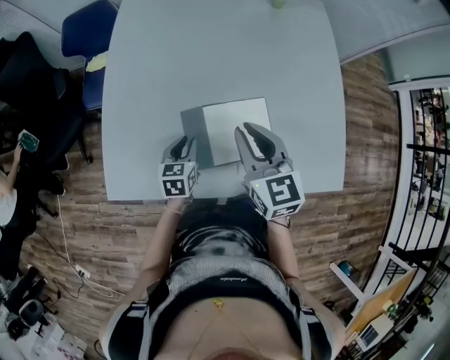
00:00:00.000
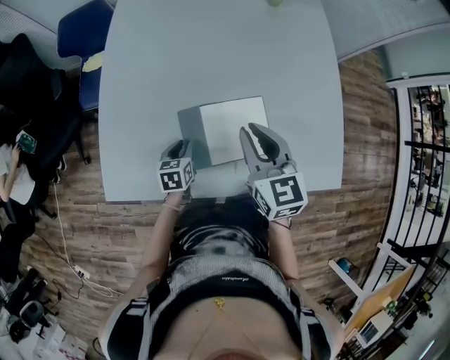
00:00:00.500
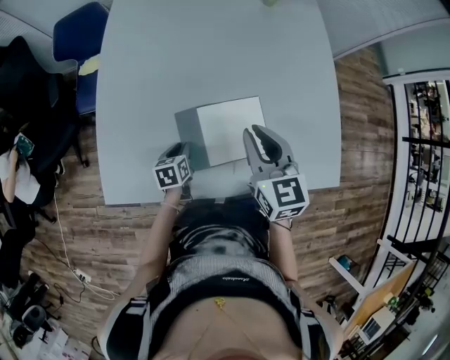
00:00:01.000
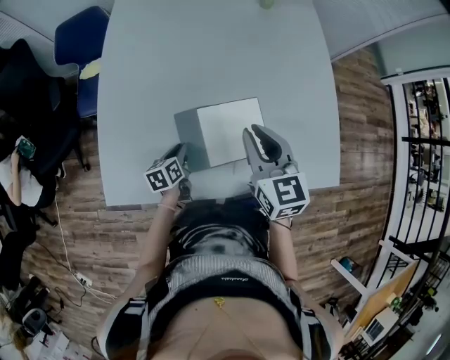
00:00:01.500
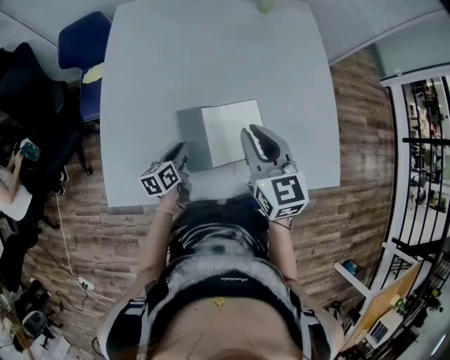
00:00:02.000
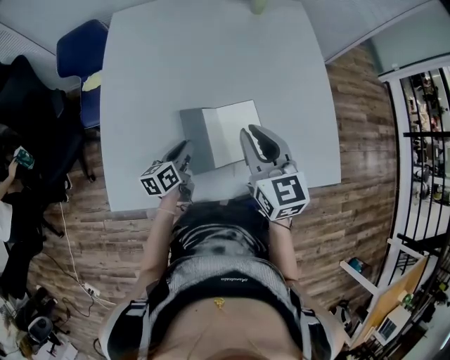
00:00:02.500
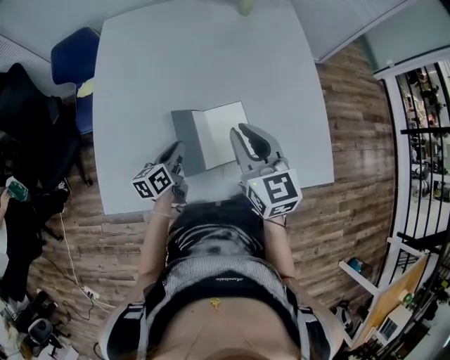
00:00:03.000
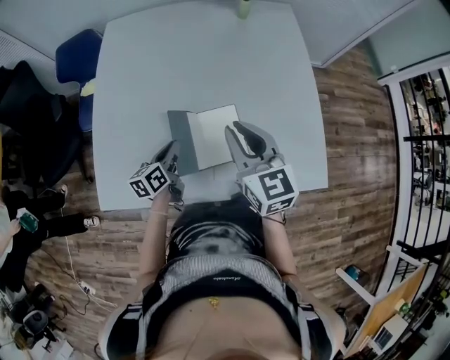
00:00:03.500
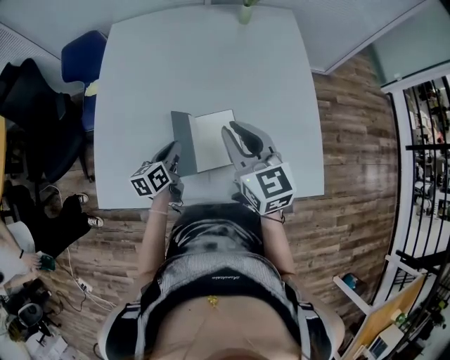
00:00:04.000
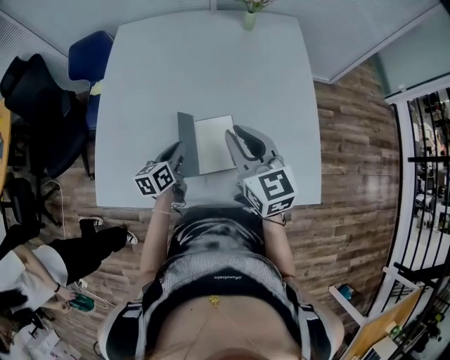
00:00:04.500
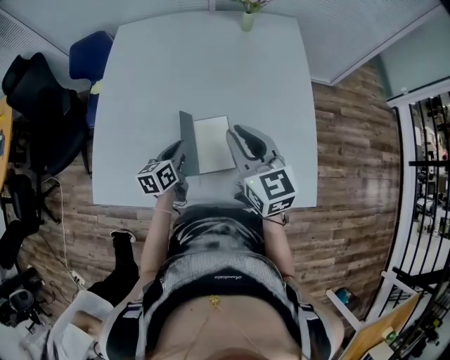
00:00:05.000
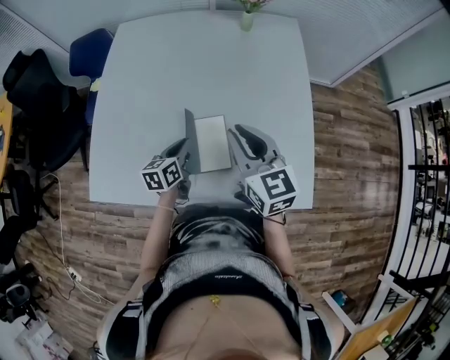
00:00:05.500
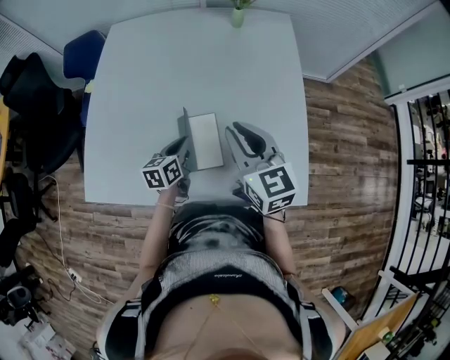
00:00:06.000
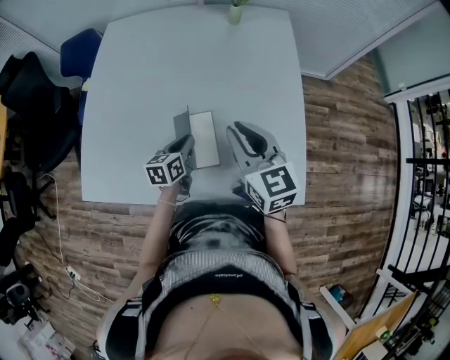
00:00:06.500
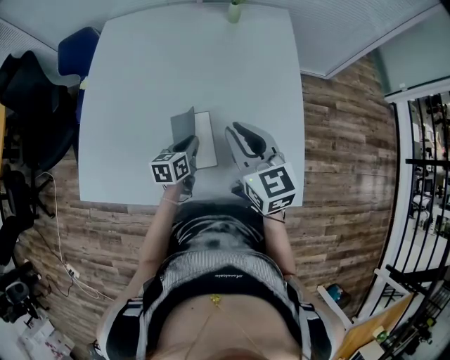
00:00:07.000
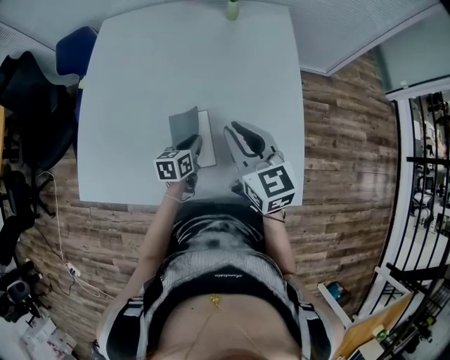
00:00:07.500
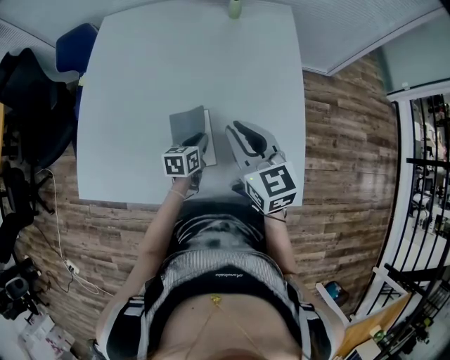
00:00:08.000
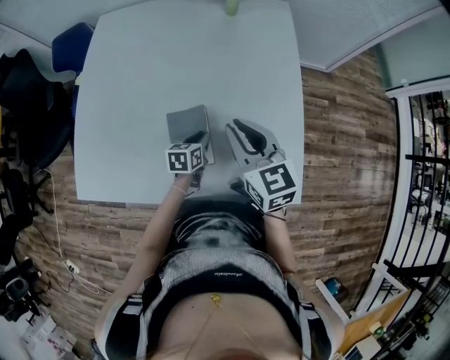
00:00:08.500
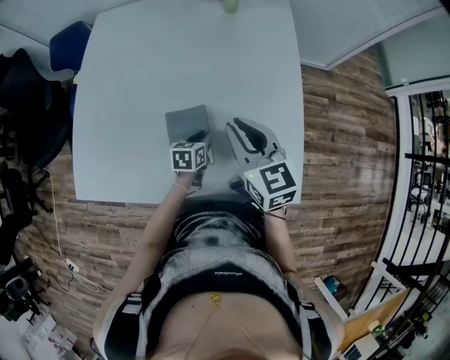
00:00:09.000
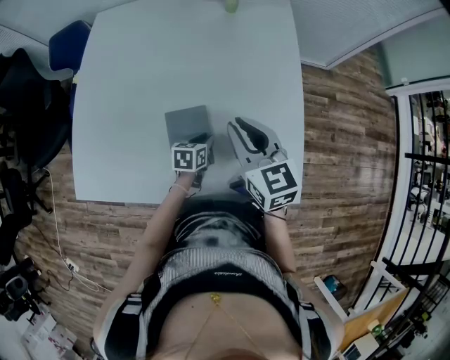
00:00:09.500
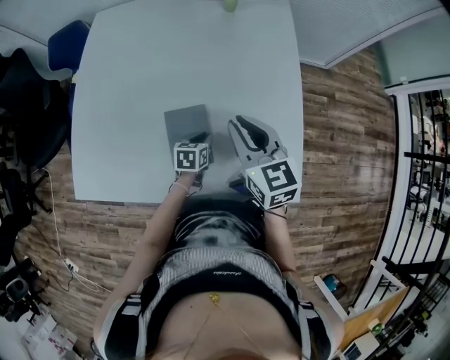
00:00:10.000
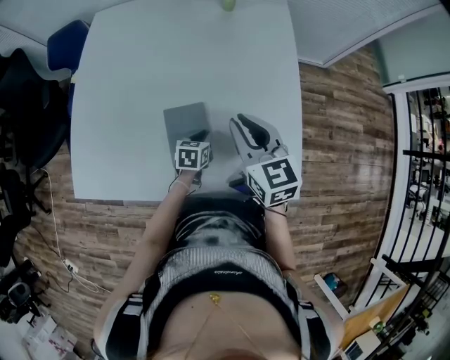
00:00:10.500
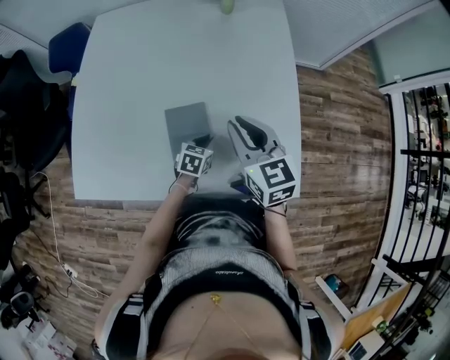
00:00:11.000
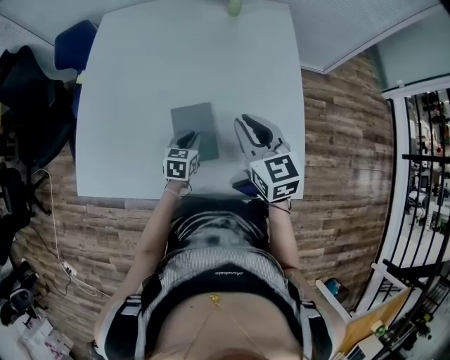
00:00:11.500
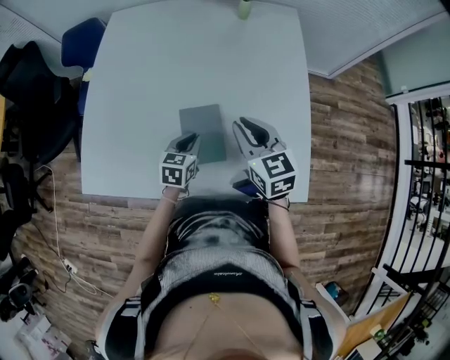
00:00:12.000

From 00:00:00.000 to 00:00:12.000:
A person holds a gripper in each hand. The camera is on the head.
From 00:00:00.000 to 00:00:02.000: The left gripper turns by approximately 30 degrees.
From 00:00:02.000 to 00:00:04.000: The right gripper goes approximately 5 cm to the right, while the left gripper is displaced upward and to the right by roughly 10 cm.
From 00:00:04.000 to 00:00:06.000: The grippers both shift to the right by roughly 10 cm.
From 00:00:06.000 to 00:00:08.000: The left gripper is displaced to the right and downward by some 10 cm.
From 00:00:08.000 to 00:00:10.000: The grippers stay close to where they were, moving slightly.
From 00:00:10.000 to 00:00:12.000: The left gripper travels upward and to the left by approximately 10 cm.

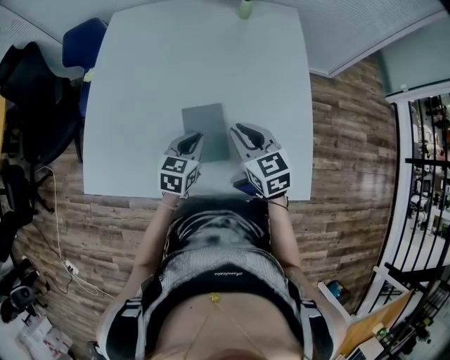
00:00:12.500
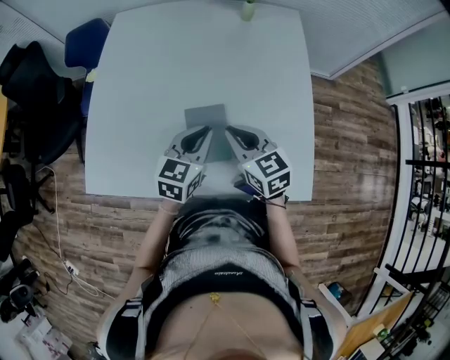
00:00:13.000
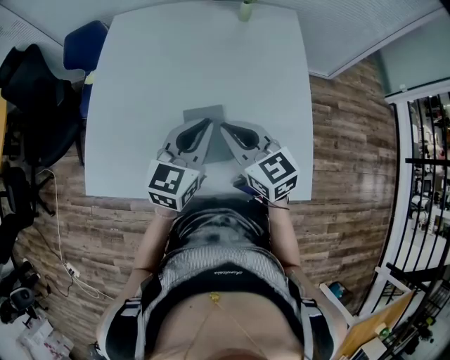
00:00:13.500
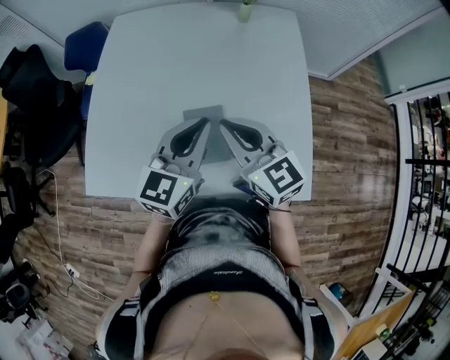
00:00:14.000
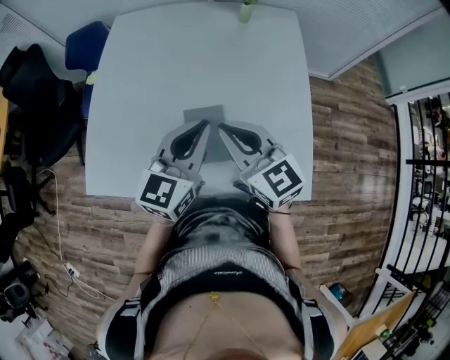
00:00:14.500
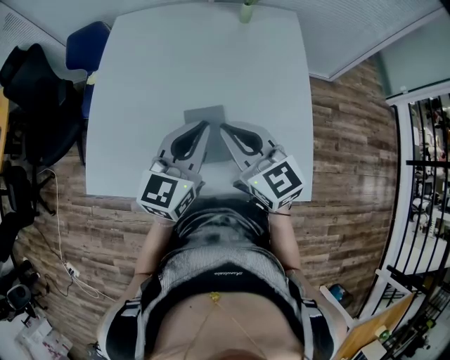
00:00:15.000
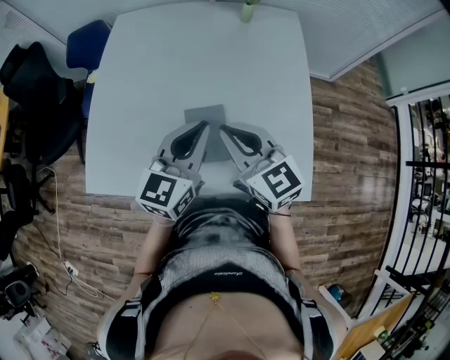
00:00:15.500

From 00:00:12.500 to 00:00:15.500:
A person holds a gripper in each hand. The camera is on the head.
From 00:00:12.500 to 00:00:14.000: The right gripper is displaced upward by approximately 10 cm, and changes its angle by roughly 20 degrees. Meanwhile the left gripper shifts roughly 20 cm upward, and rotates approximately 30 degrees.
From 00:00:14.000 to 00:00:15.500: Both grippers stay about where they are.

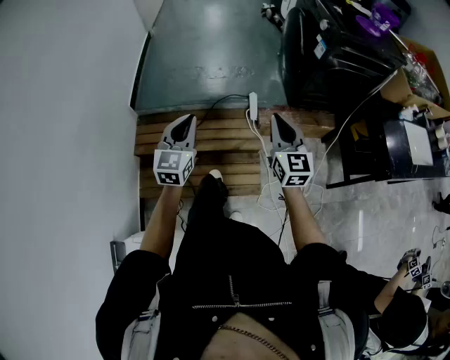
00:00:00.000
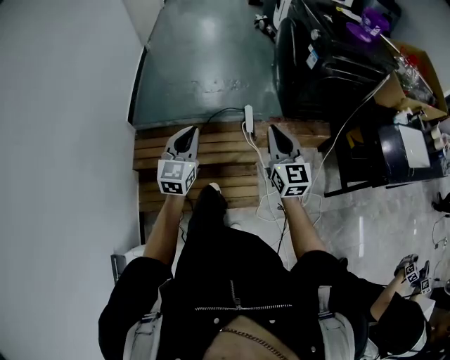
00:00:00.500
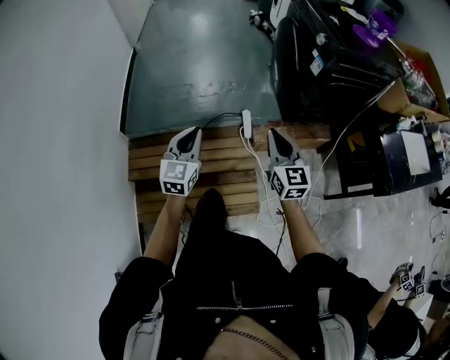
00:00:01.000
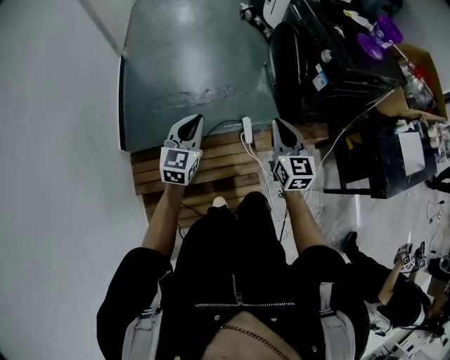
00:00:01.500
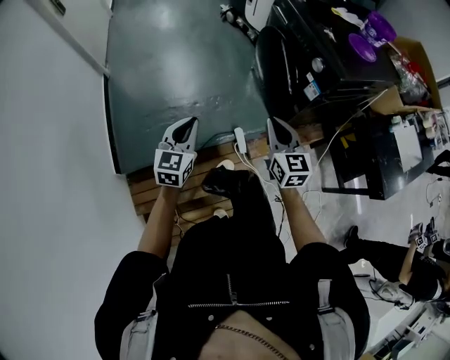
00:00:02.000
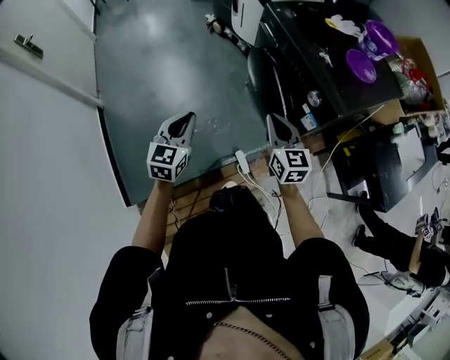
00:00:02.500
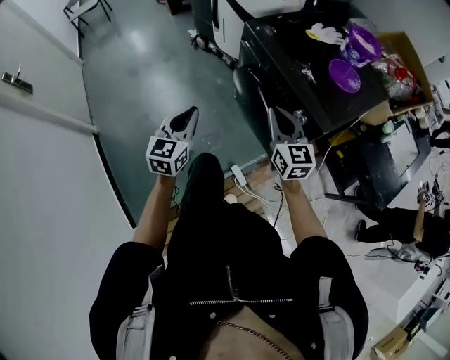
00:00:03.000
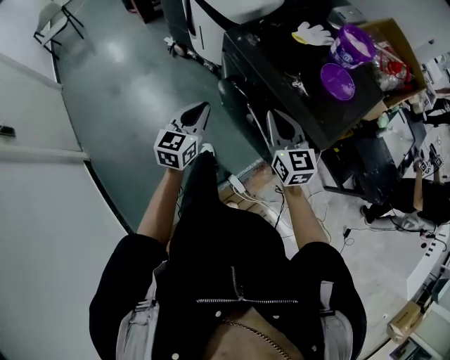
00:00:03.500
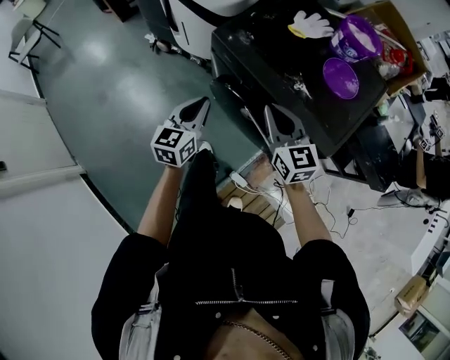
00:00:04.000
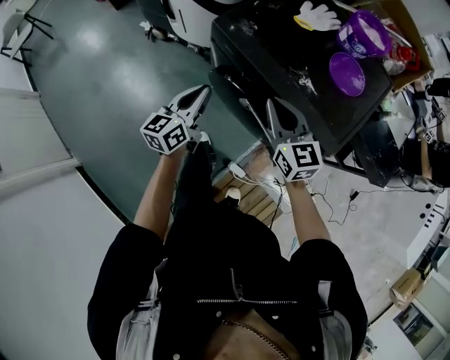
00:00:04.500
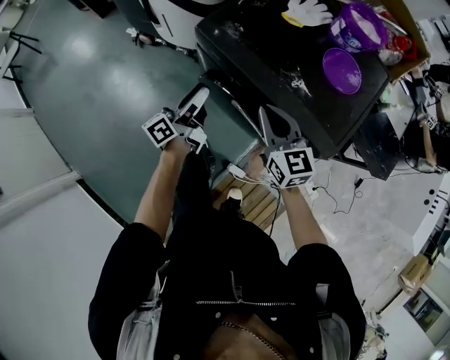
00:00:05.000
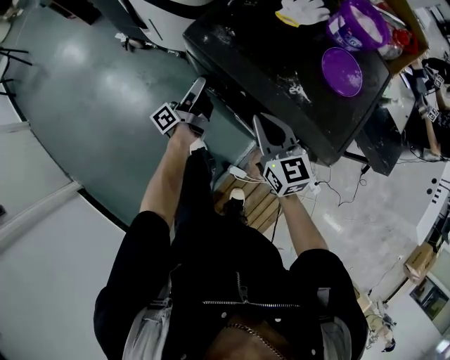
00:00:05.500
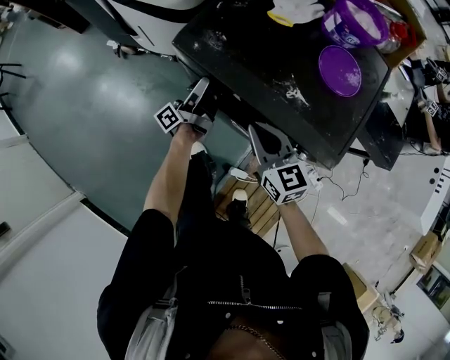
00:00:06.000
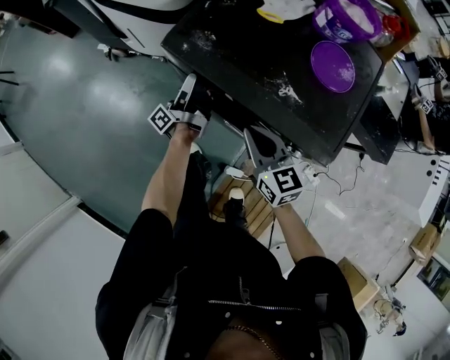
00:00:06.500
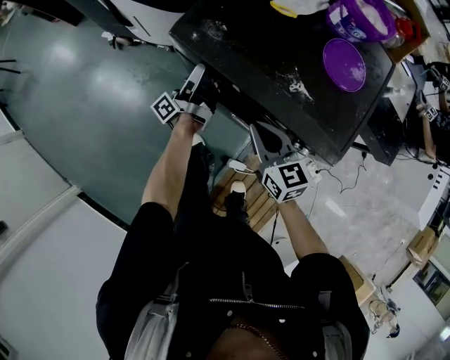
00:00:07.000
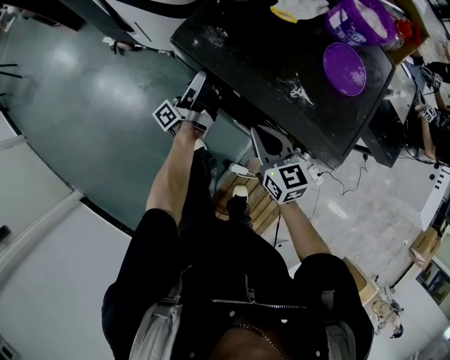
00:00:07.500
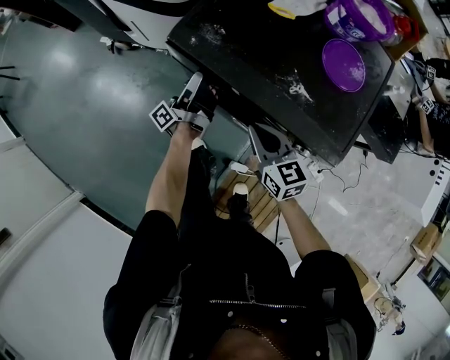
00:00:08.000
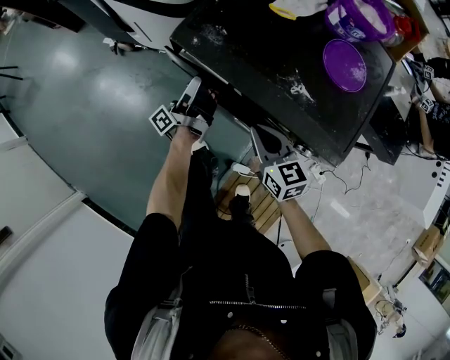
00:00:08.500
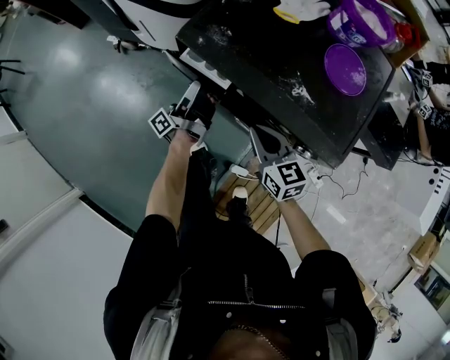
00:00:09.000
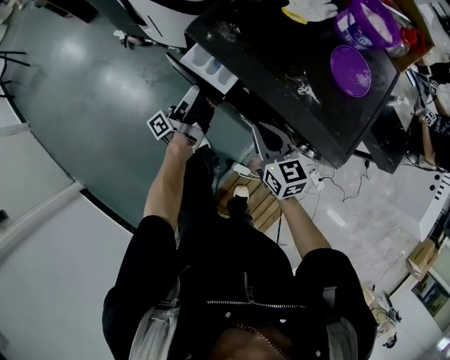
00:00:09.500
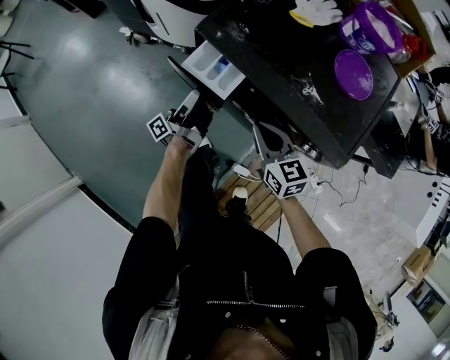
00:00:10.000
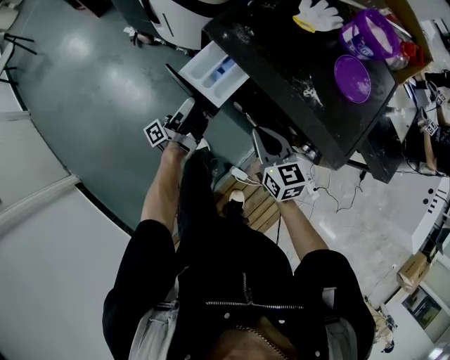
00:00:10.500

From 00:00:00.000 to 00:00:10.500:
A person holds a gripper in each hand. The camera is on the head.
From 00:00:00.000 to 00:00:02.000: Both grippers move forward, approximately 35 cm. The left gripper changes its angle by roughly 20 degrees.
From 00:00:02.000 to 00:00:04.000: The pair of grippers is taken about 50 cm. The left gripper swivels about 30 degrees.
From 00:00:04.000 to 00:00:06.500: The right gripper is displaced downward by roughly 10 cm. Meanwhile the left gripper goes about 25 cm forward and downward, rolls counterclockwise, seen from behind, by about 80 degrees, and opens up.
From 00:00:06.500 to 00:00:08.500: The grippers make only small movements.
From 00:00:08.500 to 00:00:10.500: The left gripper moves backward and to the left, some 10 cm.

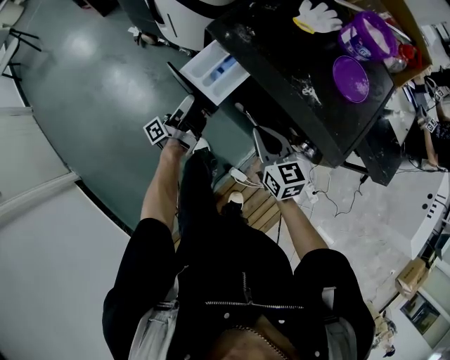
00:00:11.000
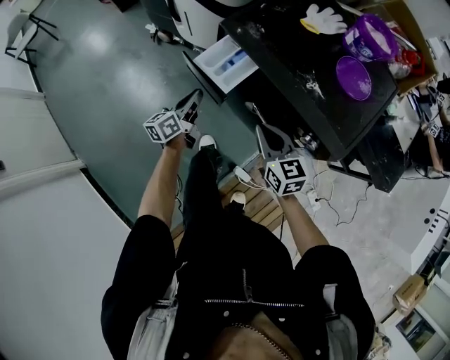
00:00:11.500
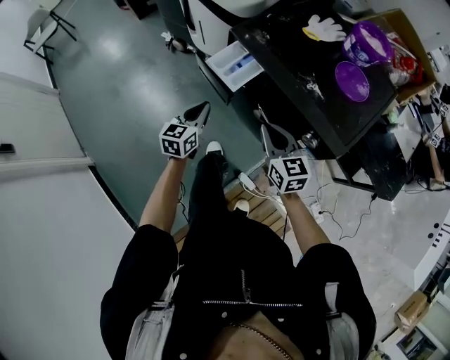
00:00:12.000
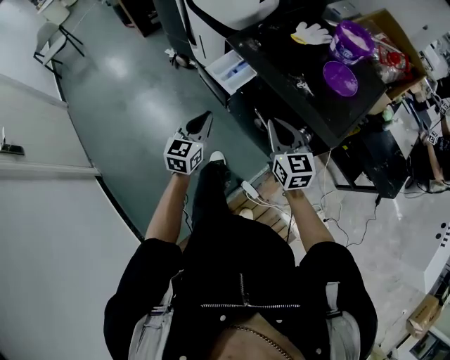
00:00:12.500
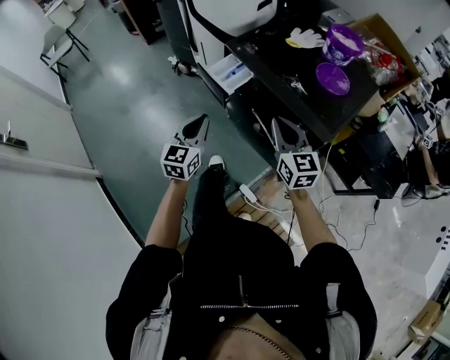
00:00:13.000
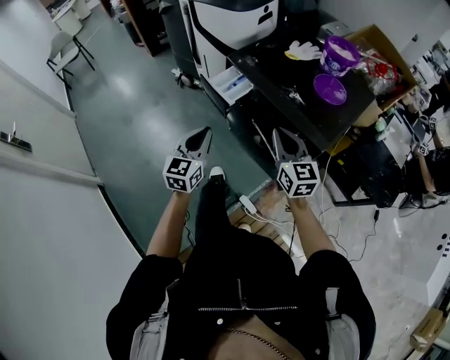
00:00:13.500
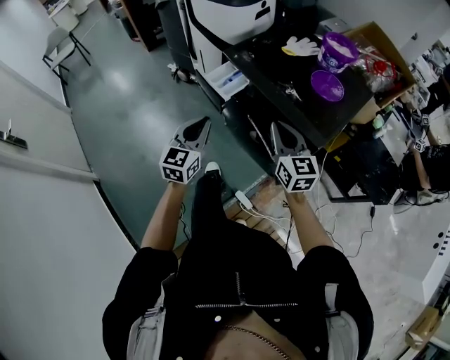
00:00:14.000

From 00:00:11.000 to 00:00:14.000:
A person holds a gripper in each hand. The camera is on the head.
From 00:00:11.000 to 00:00:12.500: The right gripper travels upward and backward by approximately 10 cm, while the left gripper goes approximately 20 cm backward and upward, rotates around the line of its fingers by about 80 degrees, clockwise from behind, and closes its fingers.
From 00:00:12.500 to 00:00:14.000: The left gripper travels upward and backward by some 10 cm; the right gripper goes some 5 cm upward.
